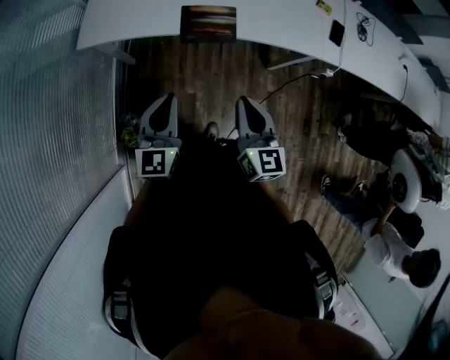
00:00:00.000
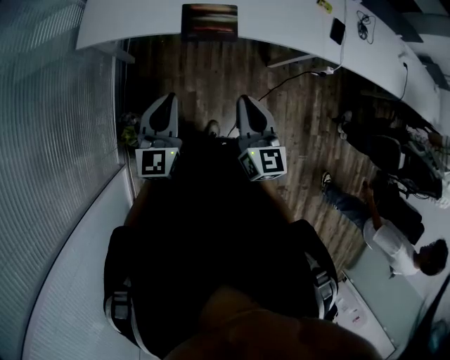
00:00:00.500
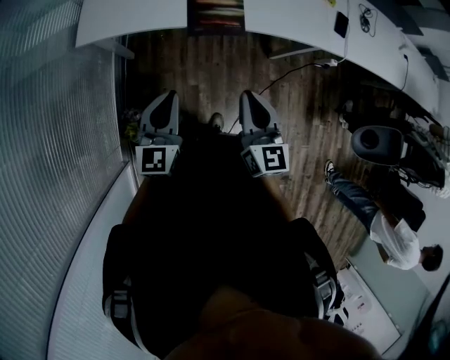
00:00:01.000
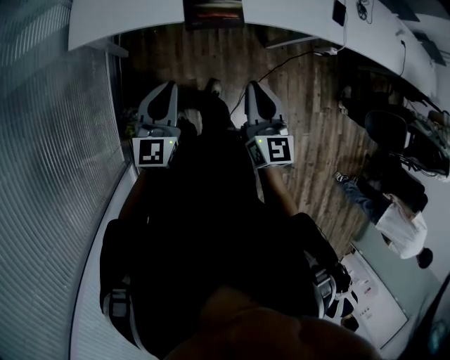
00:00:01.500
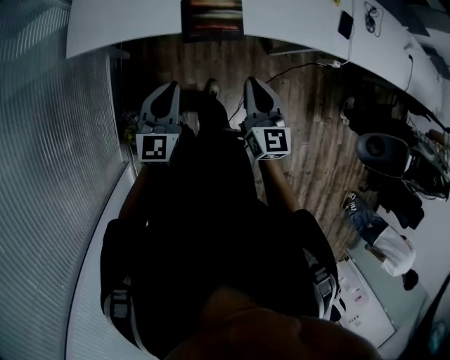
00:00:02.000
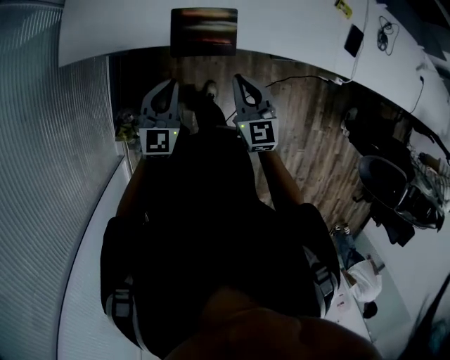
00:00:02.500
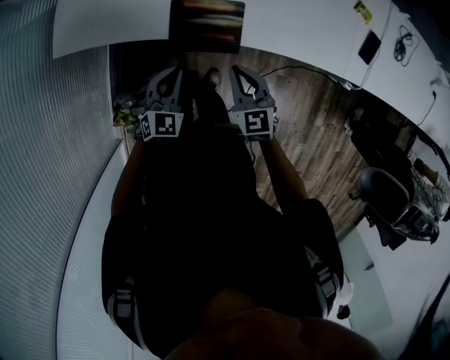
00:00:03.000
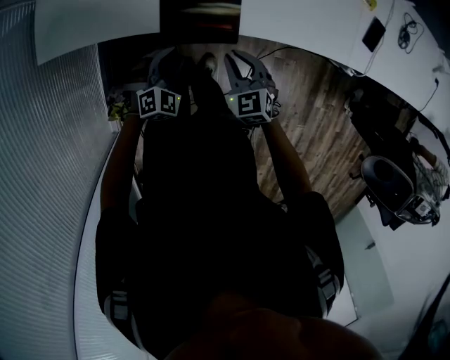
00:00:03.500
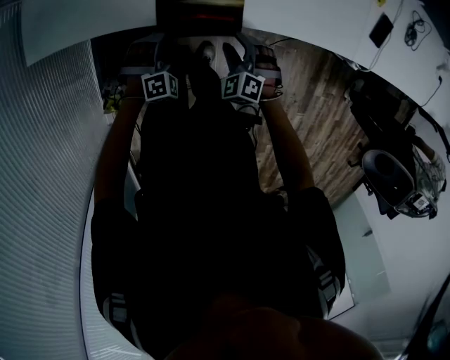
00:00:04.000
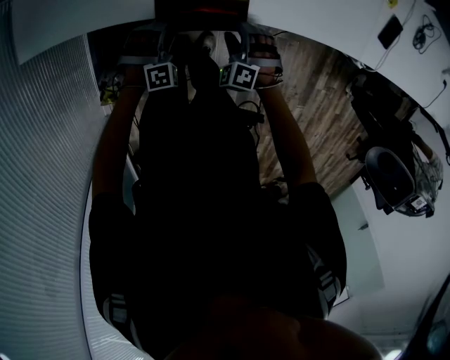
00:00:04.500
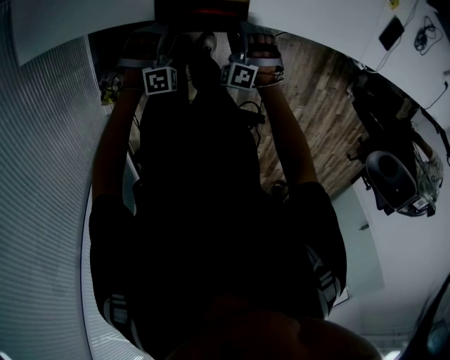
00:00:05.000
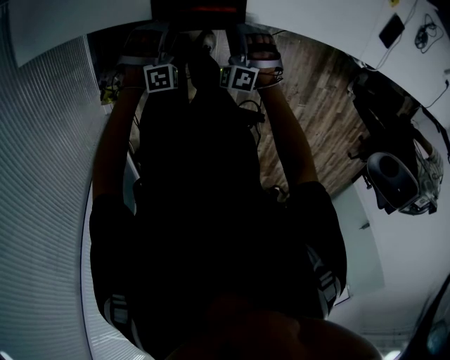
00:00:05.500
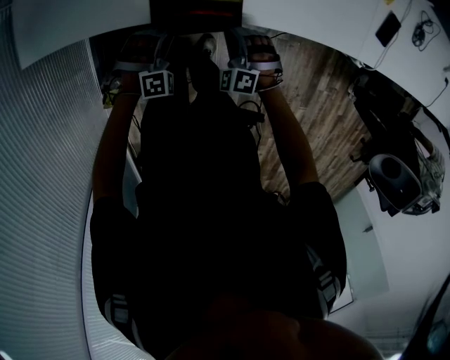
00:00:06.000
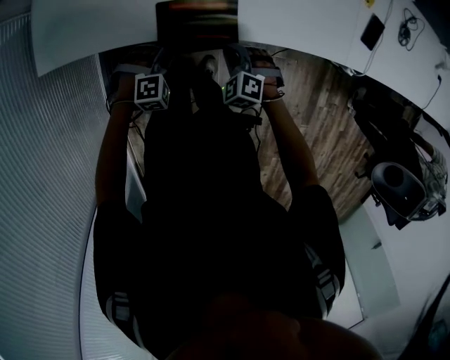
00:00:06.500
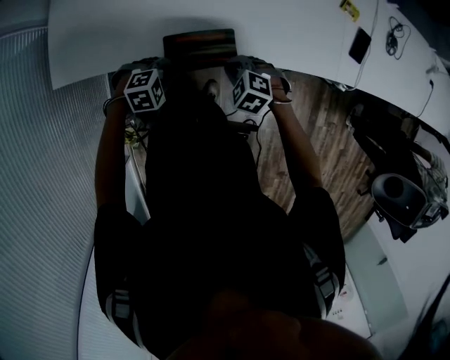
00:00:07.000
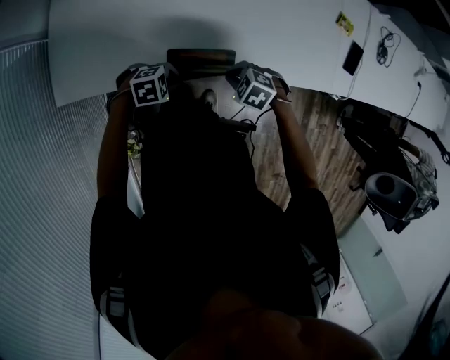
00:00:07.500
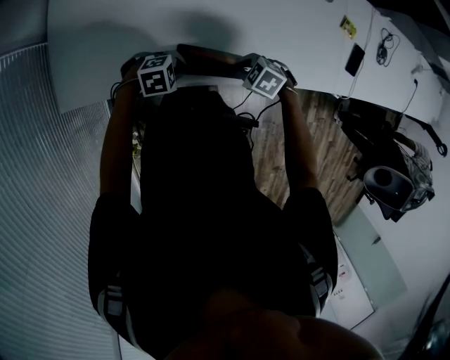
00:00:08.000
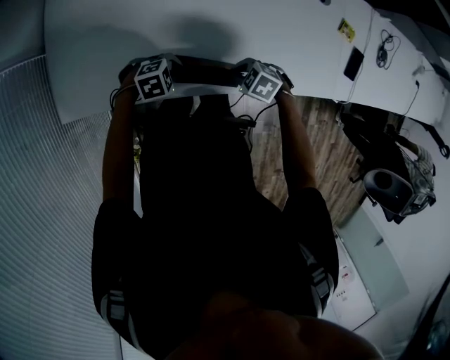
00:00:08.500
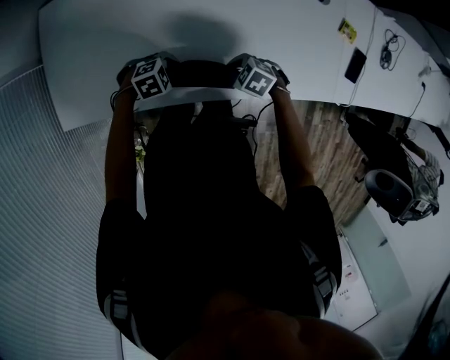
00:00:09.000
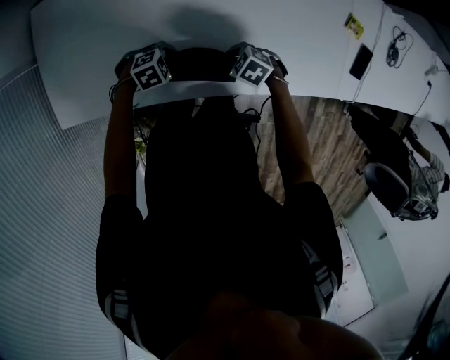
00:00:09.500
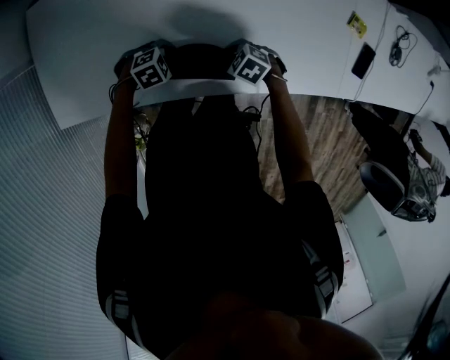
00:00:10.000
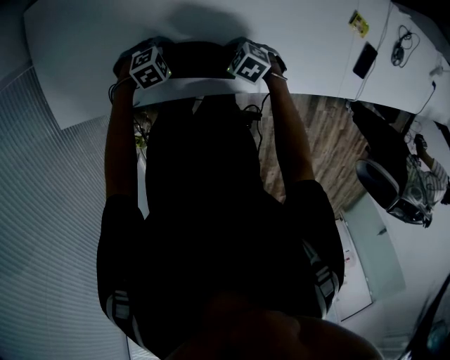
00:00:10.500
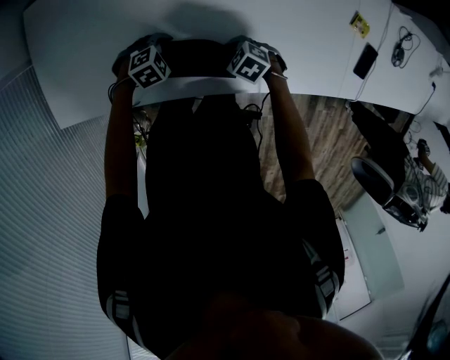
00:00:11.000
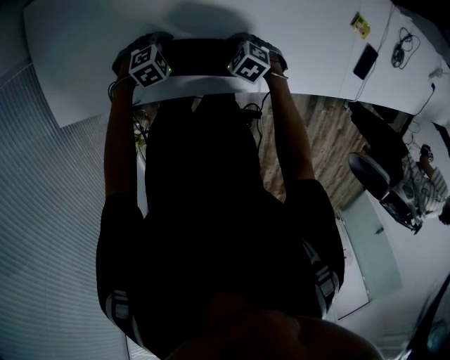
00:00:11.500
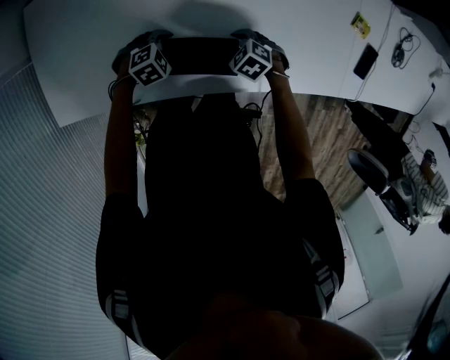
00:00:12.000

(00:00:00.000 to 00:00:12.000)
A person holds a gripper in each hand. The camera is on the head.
00:00:00.000 - 00:00:02.000: The two grippers go approximately 10 cm forward and downward.
00:00:02.000 - 00:00:04.000: The grippers both shift downward and forward by approximately 35 cm. The right gripper rotates around the line of its fingers by some 50 degrees, counterclockwise from behind, and opens its fingers. The left gripper rotates around the line of its fingers by roughly 60 degrees, clockwise from behind, and opens up.
00:00:04.000 - 00:00:06.000: The right gripper closes up, while the left gripper closes.
00:00:06.000 - 00:00:08.000: The left gripper changes place by roughly 15 cm, and turns by approximately 50 degrees; the right gripper shifts by some 15 cm, and turns by roughly 50 degrees.
00:00:08.000 - 00:00:10.000: The left gripper moves some 15 cm. The right gripper moves about 10 cm.
00:00:10.000 - 00:00:12.000: The left gripper opens.

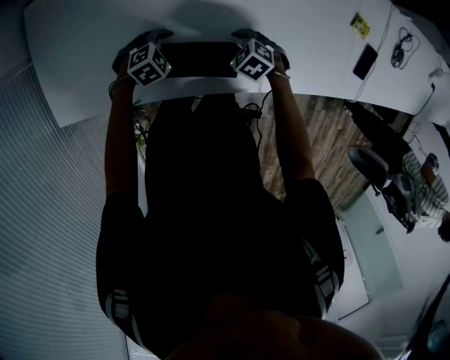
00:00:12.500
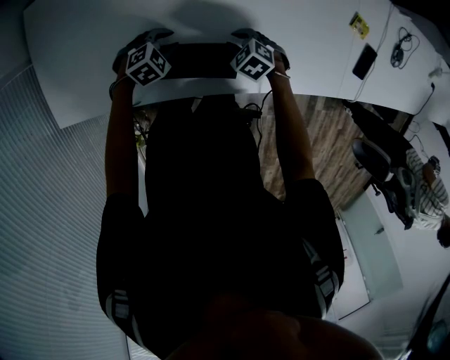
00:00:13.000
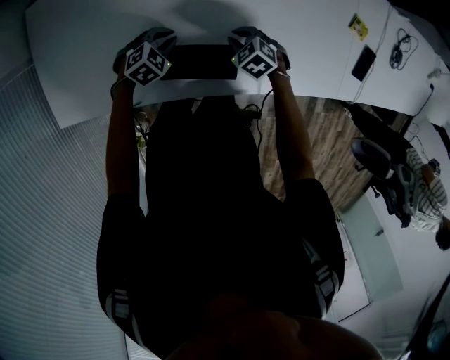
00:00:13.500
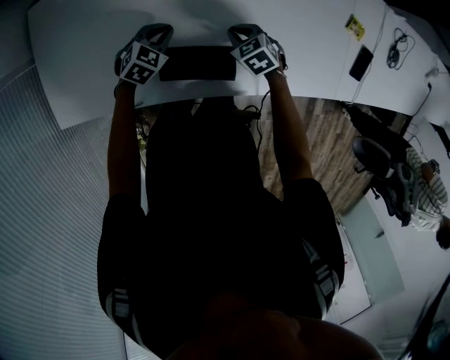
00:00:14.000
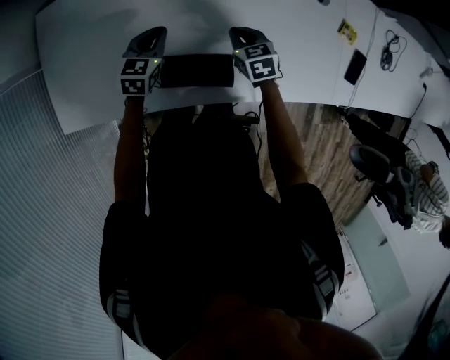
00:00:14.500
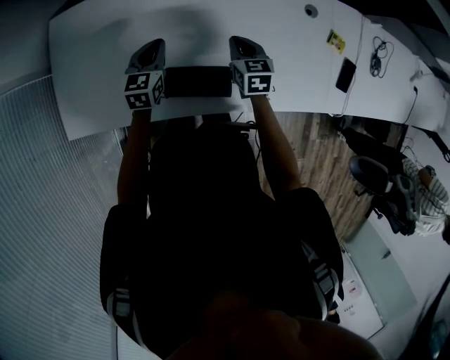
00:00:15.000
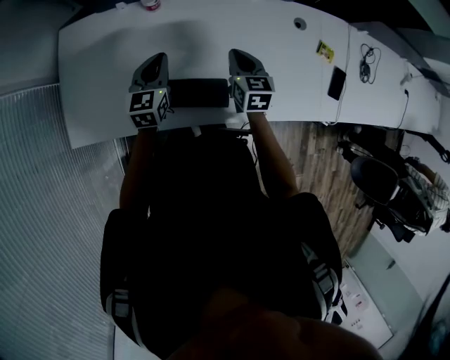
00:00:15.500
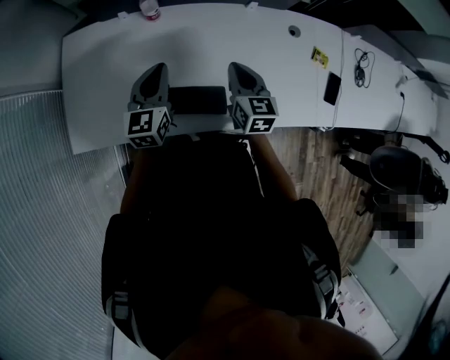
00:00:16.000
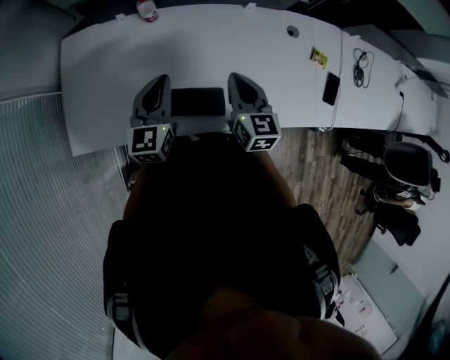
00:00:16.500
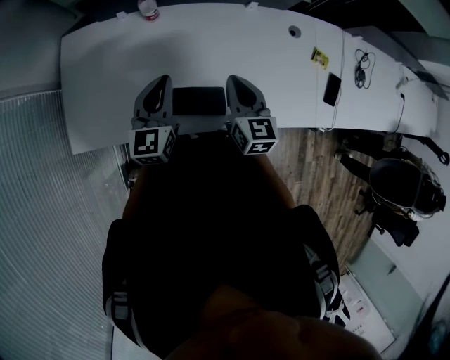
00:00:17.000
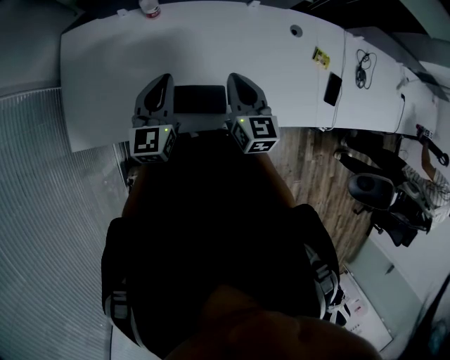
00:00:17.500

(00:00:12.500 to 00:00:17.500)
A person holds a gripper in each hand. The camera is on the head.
00:00:12.500 - 00:00:15.000: The grippers both shift upward by roughly 15 cm. The left gripper tips its fingers upward by about 30 degrees, and closes its fingers, while the right gripper rotates roughly 50 degrees, and closes.
00:00:15.000 - 00:00:17.500: The grippers both shift upward and backward by roughly 15 cm. The right gripper swivels some 20 degrees.

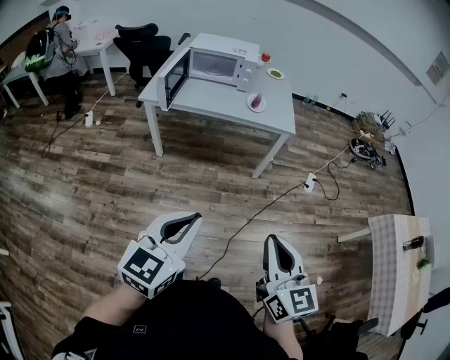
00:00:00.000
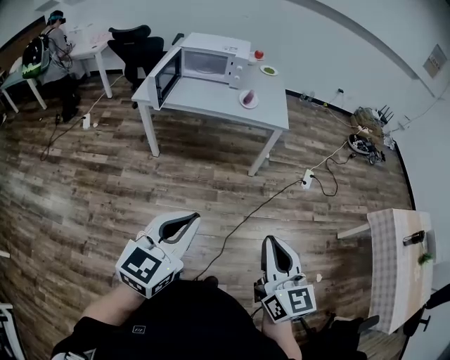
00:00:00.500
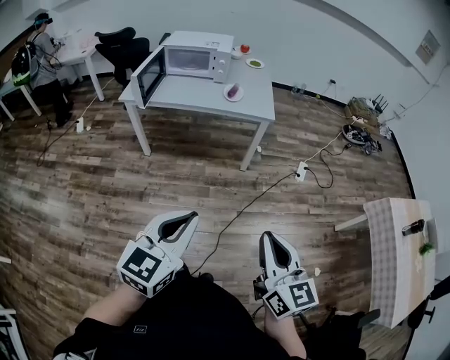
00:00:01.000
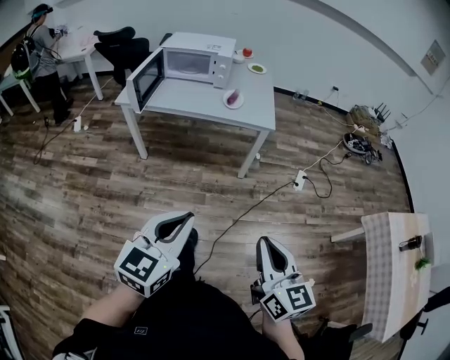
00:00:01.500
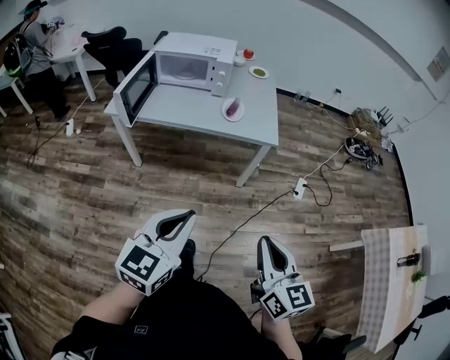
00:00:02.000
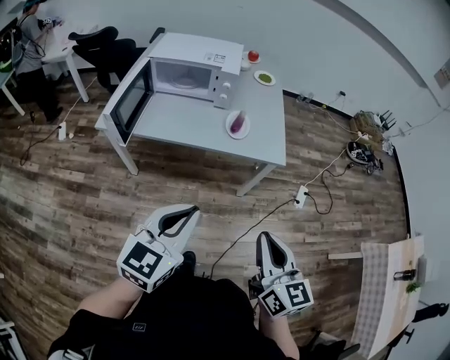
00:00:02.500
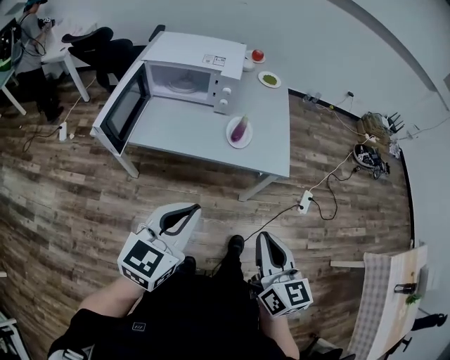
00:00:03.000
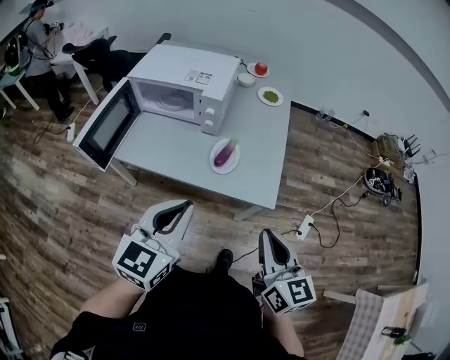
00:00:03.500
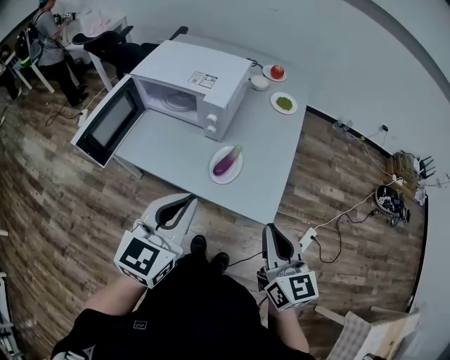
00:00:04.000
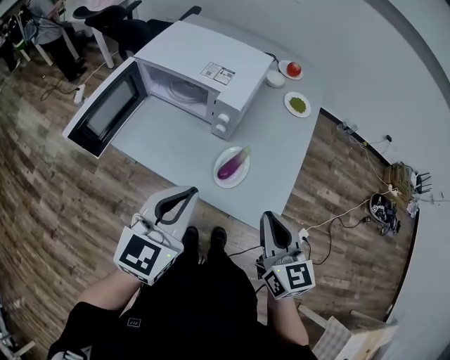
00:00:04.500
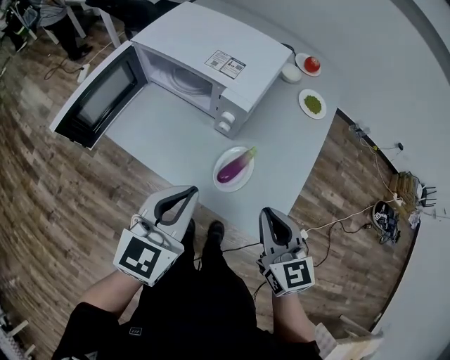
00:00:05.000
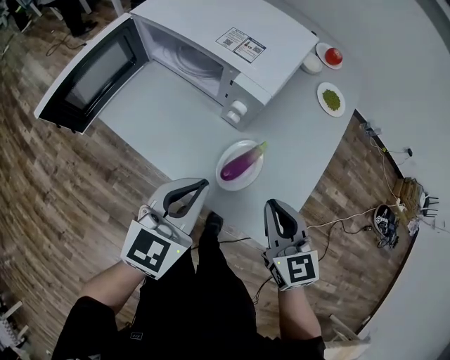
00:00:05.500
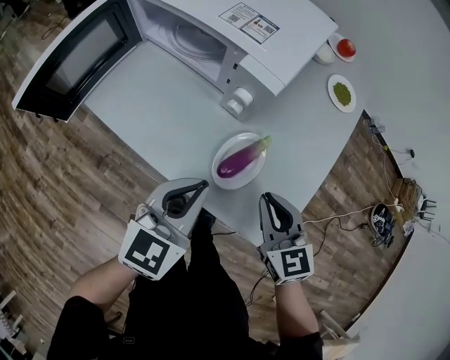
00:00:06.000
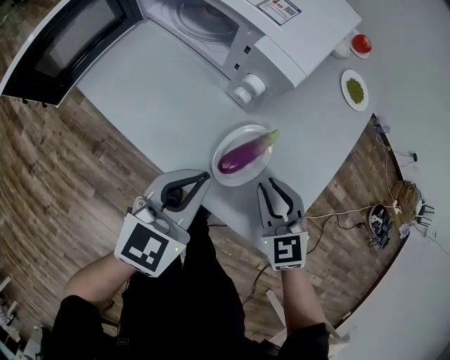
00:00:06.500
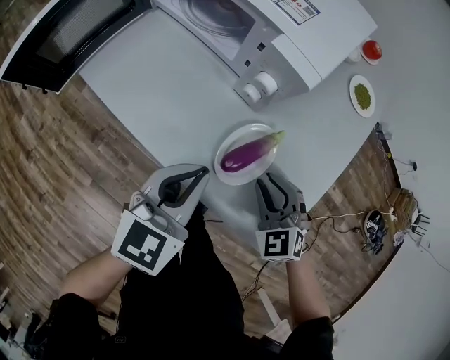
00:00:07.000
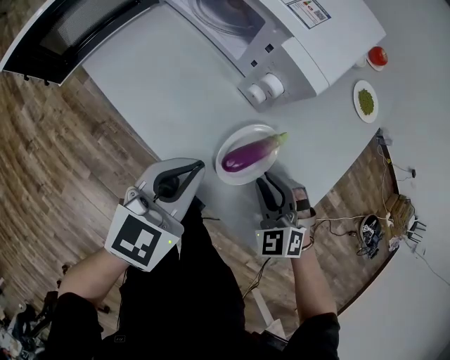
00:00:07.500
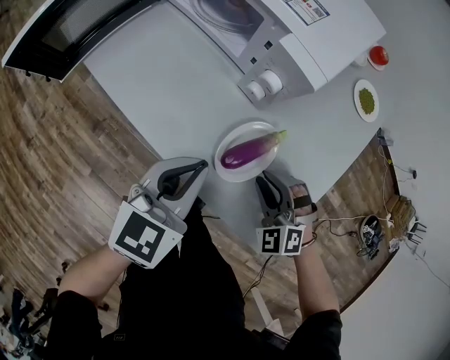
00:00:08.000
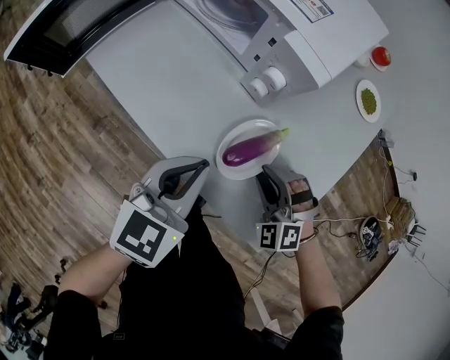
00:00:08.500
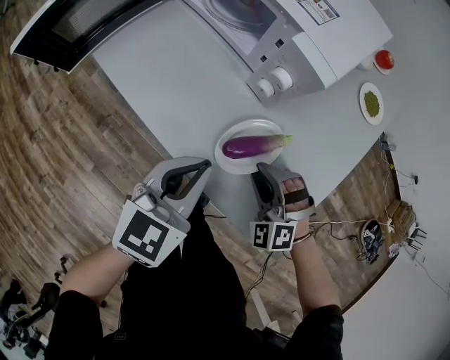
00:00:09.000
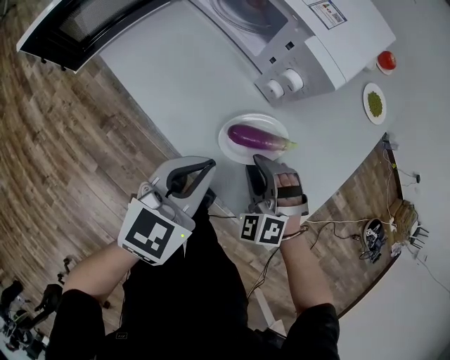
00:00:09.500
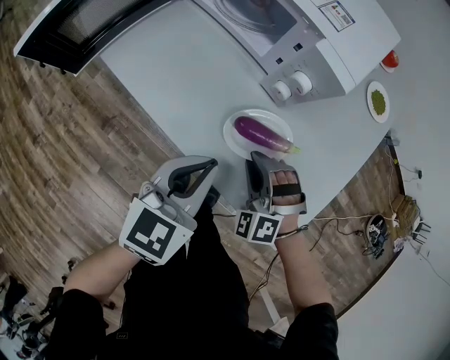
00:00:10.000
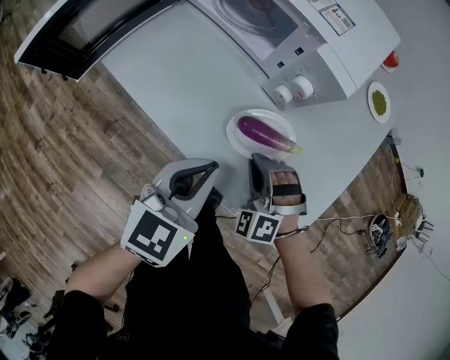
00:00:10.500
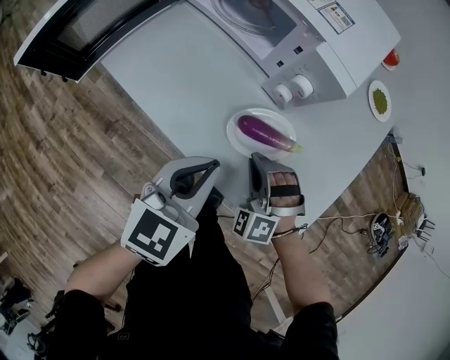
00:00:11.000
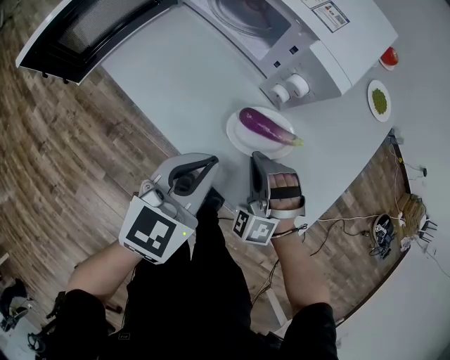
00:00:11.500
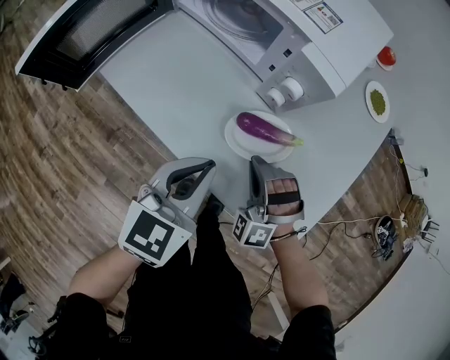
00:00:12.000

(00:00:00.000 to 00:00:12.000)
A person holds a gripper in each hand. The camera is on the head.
00:00:00.000 - 00:00:02.000: Both grippers travel together forward and to the right, about 20 cm.
00:00:02.000 - 00:00:04.000: The pair of grippers is taken forward, about 50 cm.
00:00:04.000 - 00:00:06.000: The right gripper shifts approximately 30 cm forward and downward, and rotates approximately 30 degrees. The left gripper goes some 25 cm downward and forward.
00:00:06.000 - 00:00:08.000: The right gripper travels downward by about 10 cm, twists approximately 60 degrees counterclockwise, seen from behind, and opens its fingers.
00:00:08.000 - 00:00:10.000: The right gripper travels to the left by about 10 cm.
00:00:10.000 - 00:00:12.000: The grippers move only a little.
